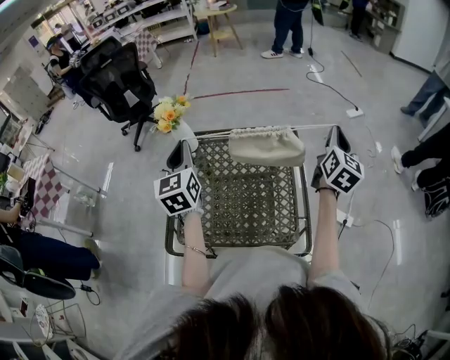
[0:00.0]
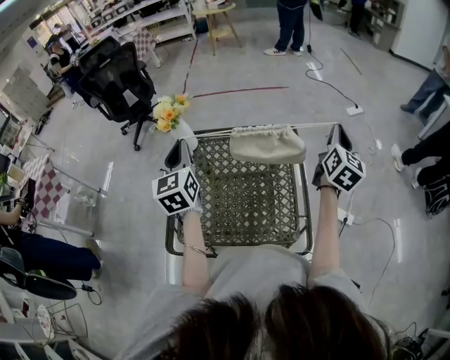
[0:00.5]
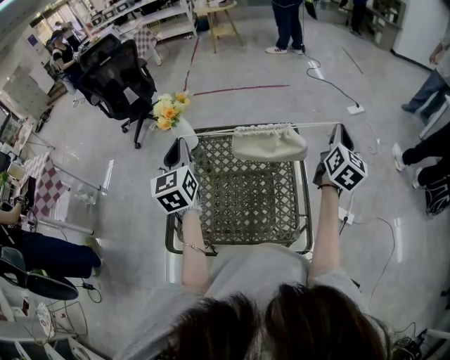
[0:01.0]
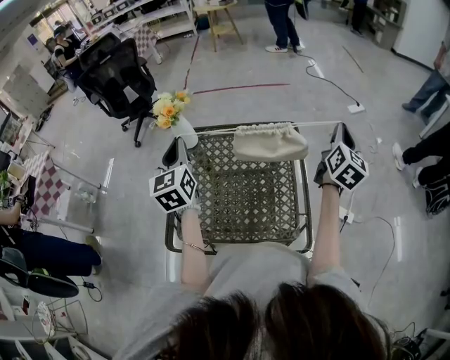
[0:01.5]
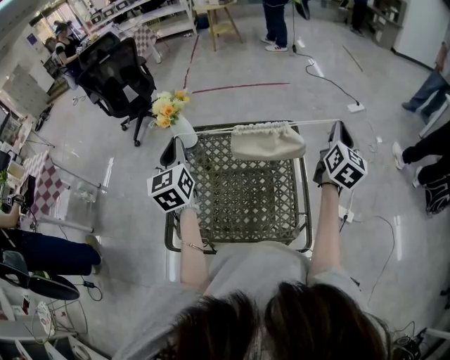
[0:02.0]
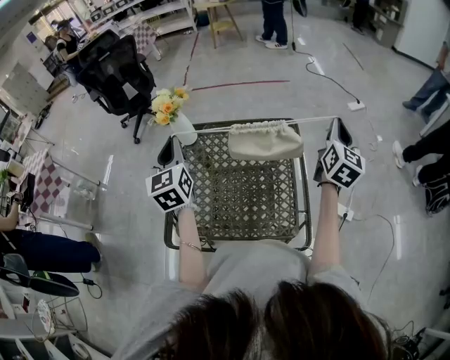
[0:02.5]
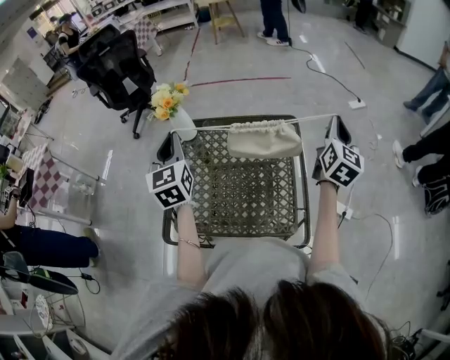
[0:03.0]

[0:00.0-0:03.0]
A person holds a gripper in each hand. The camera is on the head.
0:00.0 to 0:03.0: The grippers stay close to where they were, moving slightly.

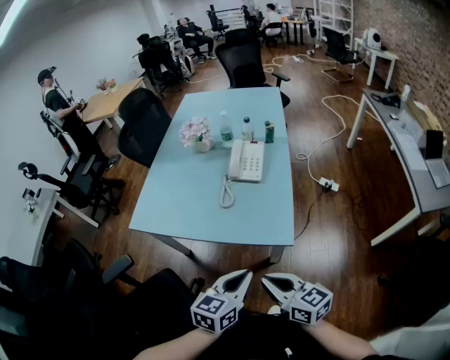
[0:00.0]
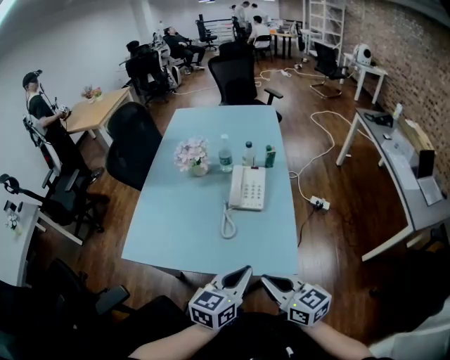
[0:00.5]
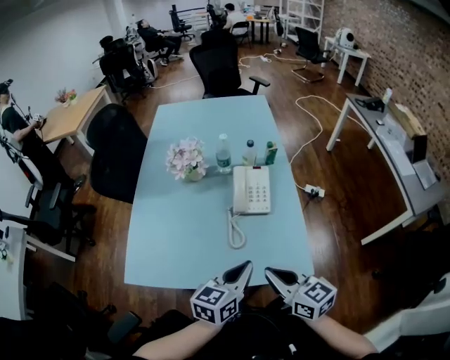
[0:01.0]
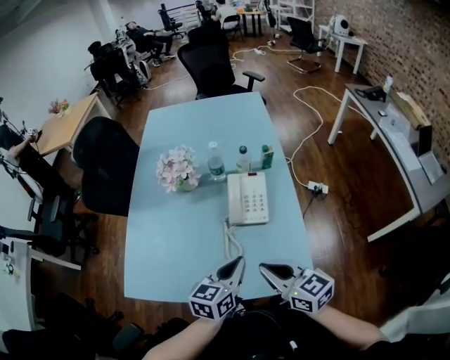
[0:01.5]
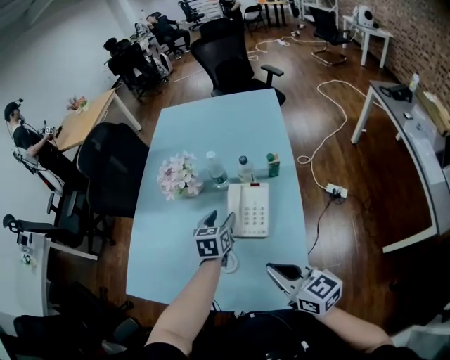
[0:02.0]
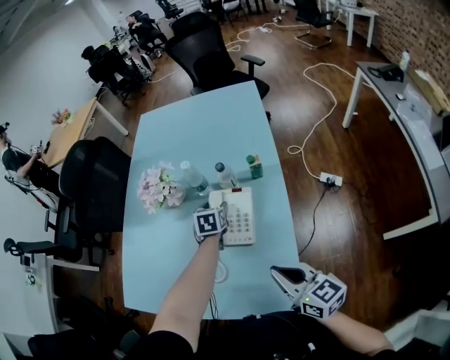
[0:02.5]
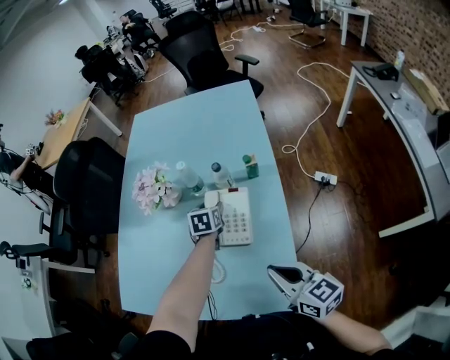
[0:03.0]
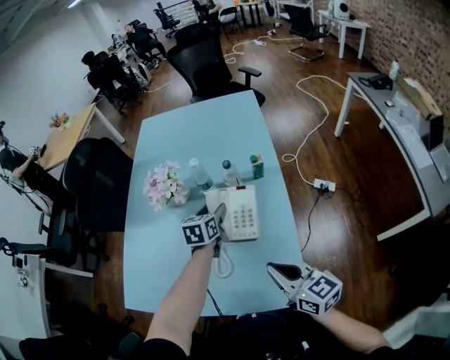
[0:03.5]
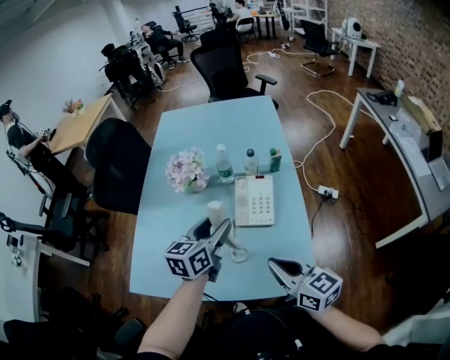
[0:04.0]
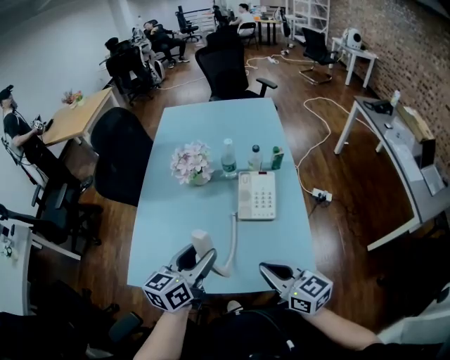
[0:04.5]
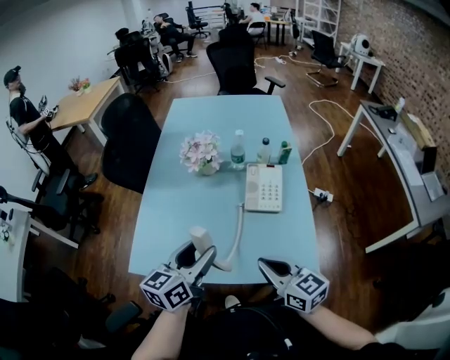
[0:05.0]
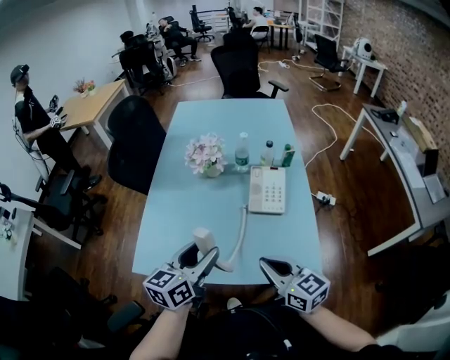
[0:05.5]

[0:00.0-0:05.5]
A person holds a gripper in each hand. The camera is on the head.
0:00.0 to 0:02.0: The right gripper shifts roughly 30 cm forward; the left gripper heads forward, covering roughly 50 cm, rotates about 20 degrees, and opens.
0:03.5 to 0:05.5: The right gripper travels to the left and backward by roughly 20 cm. The left gripper is displaced backward, to the left and upward by about 35 cm, and swivels some 30 degrees.

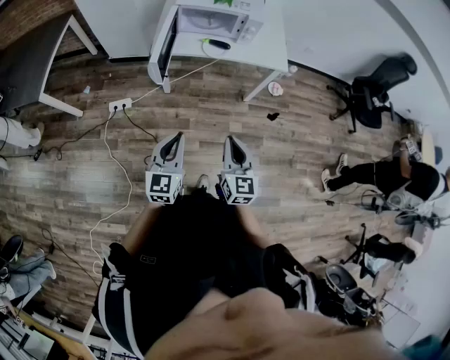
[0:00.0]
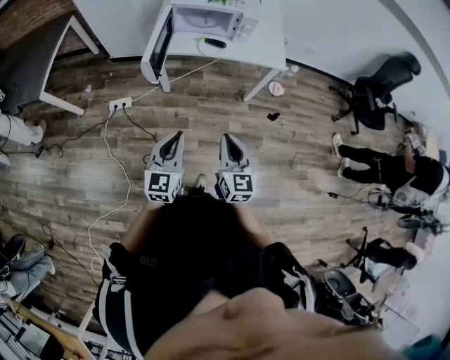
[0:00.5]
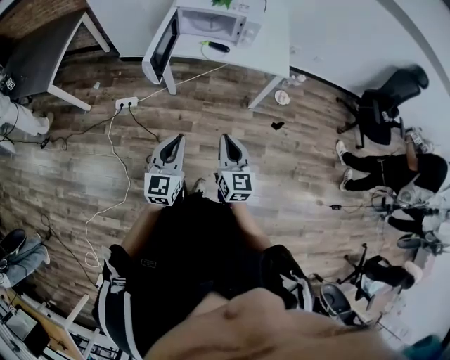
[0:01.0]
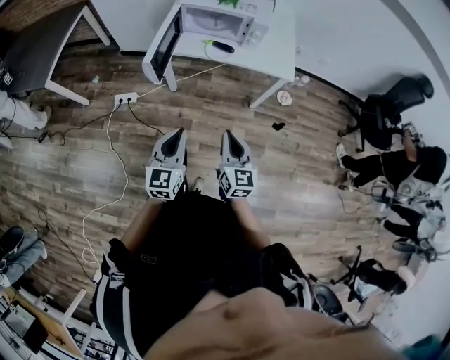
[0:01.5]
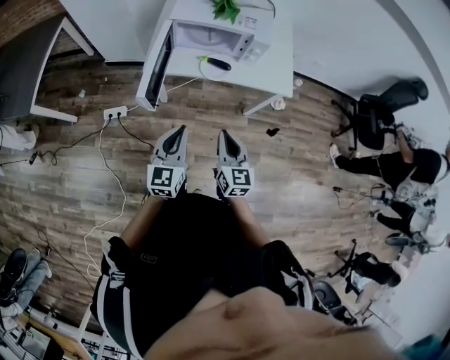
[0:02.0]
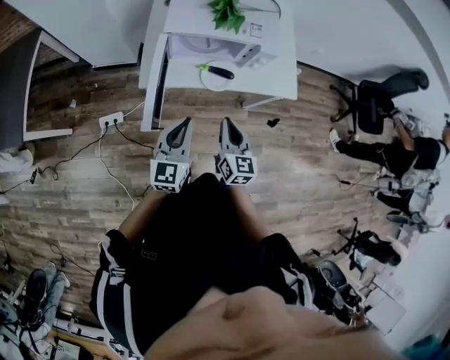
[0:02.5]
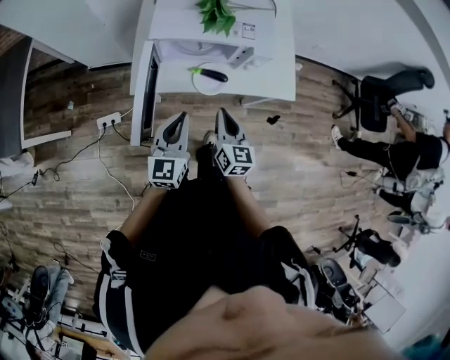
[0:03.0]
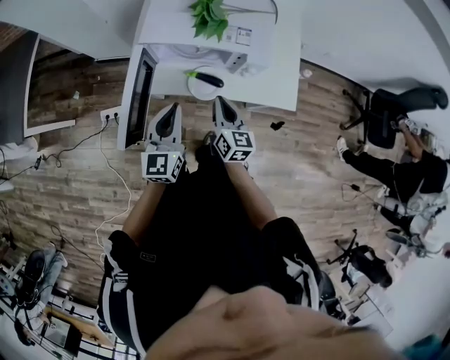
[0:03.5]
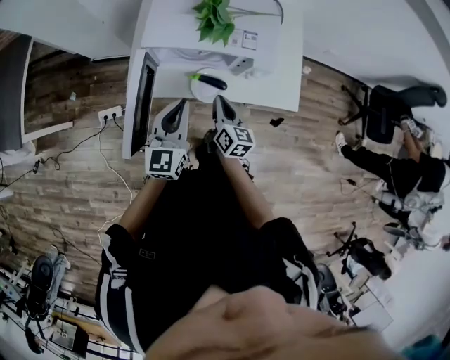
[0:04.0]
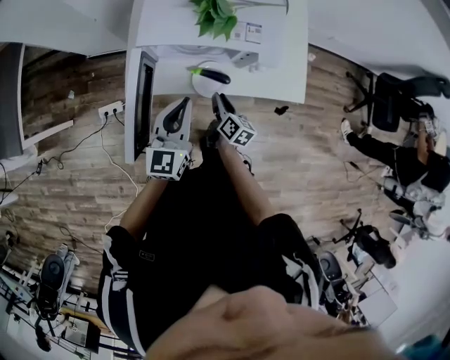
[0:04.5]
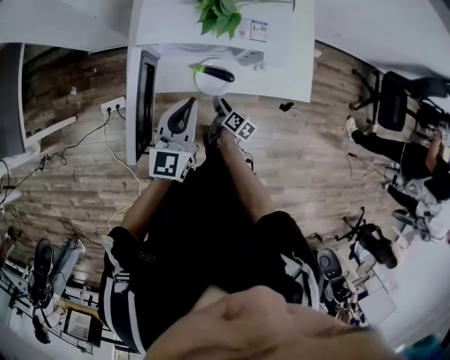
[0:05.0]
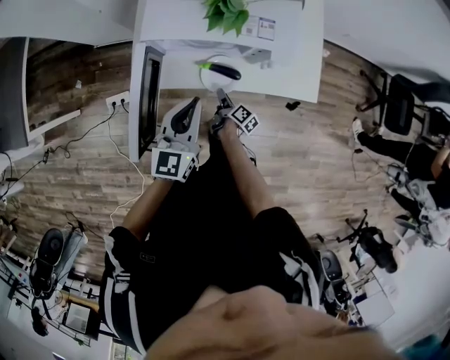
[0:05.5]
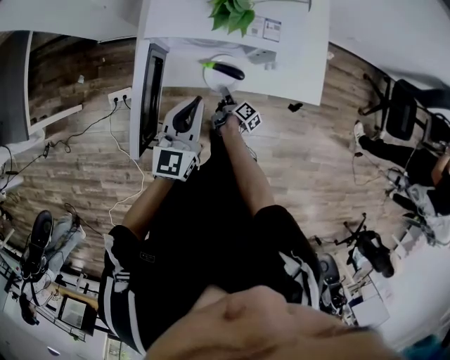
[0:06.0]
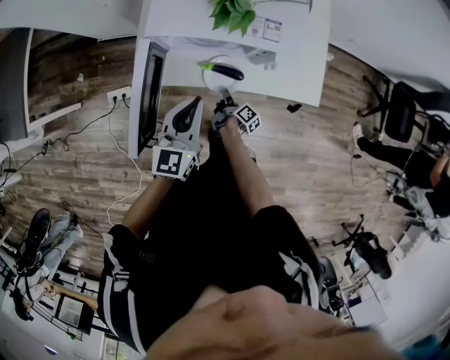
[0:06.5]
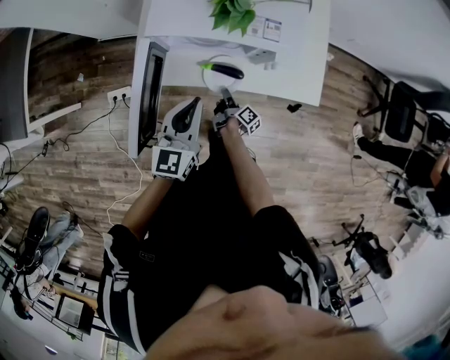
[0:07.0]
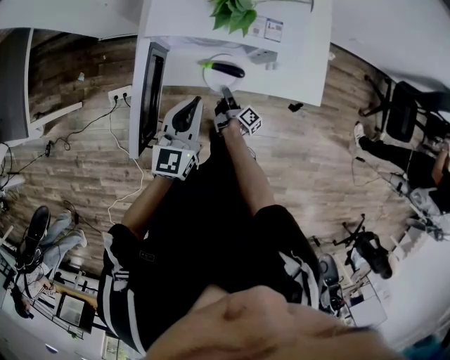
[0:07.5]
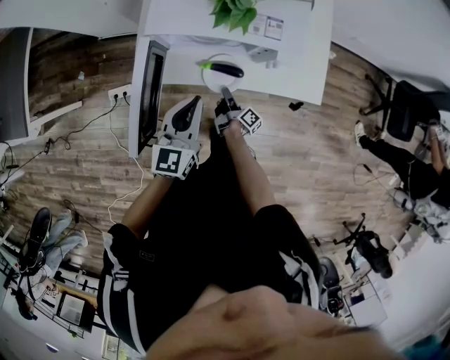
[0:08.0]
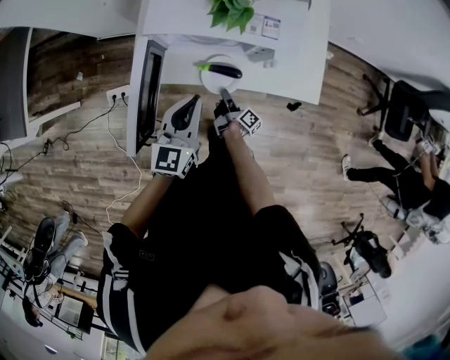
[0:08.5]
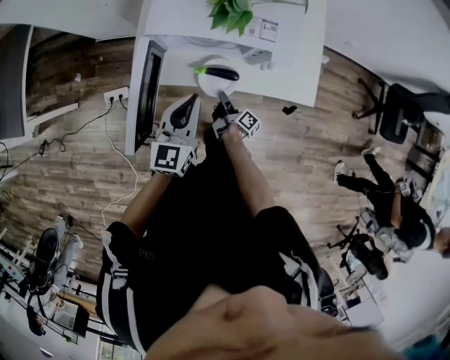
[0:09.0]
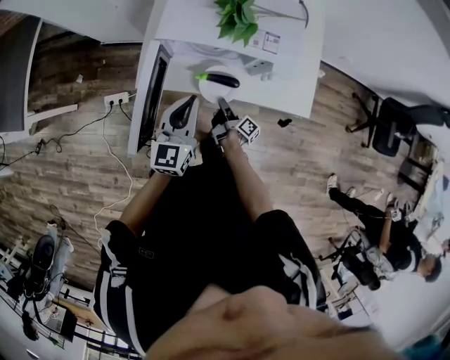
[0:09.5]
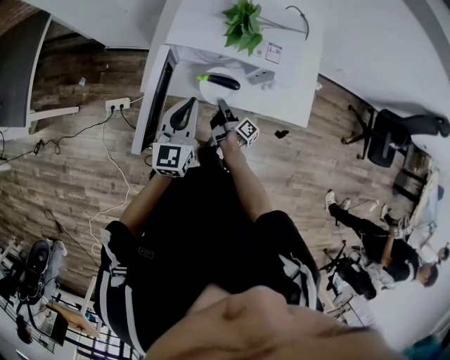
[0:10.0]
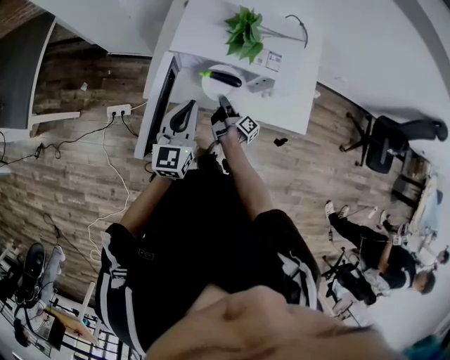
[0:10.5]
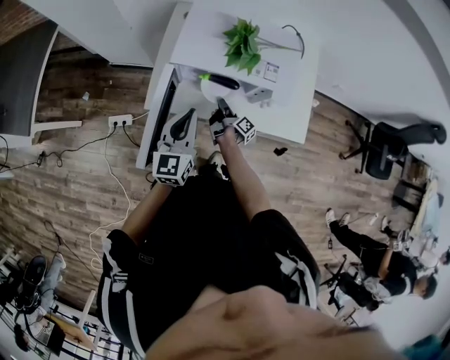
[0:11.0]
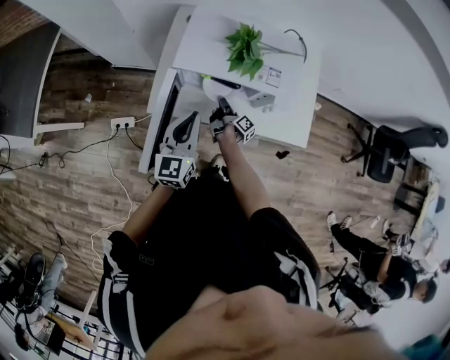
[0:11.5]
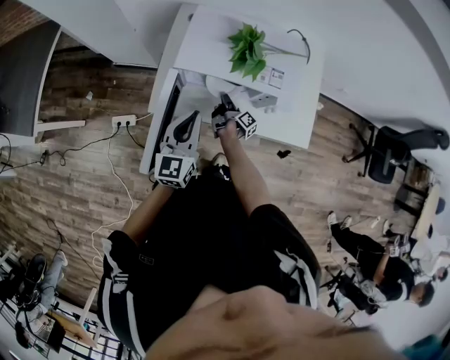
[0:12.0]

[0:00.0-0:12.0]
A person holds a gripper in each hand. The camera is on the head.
0:00.0 to 0:02.0: Both grippers travel together forward, some 20 cm.
0:02.0 to 0:04.0: The two grippers go roughly 30 cm forward. The right gripper turns by some 20 degrees.
0:04.0 to 0:06.0: The right gripper is displaced downward by about 25 cm, and twists roughly 50 degrees clockwise, seen from behind.
0:06.0 to 0:08.0: The grippers make only small movements.
0:08.0 to 0:10.0: The right gripper goes roughly 5 cm upward.
0:10.0 to 0:12.0: The right gripper moves forward, approximately 10 cm.

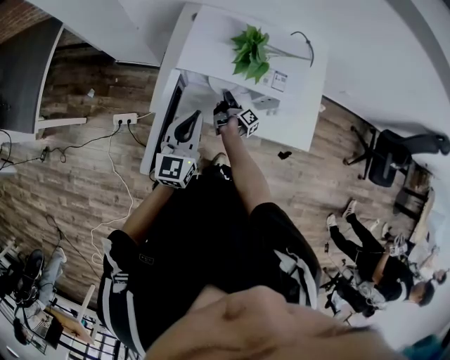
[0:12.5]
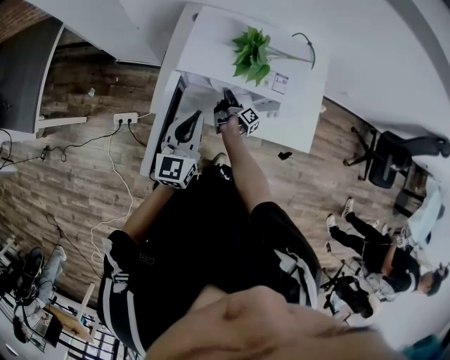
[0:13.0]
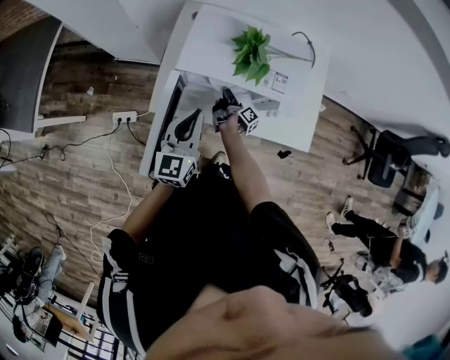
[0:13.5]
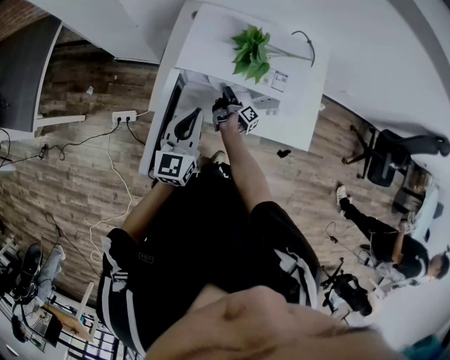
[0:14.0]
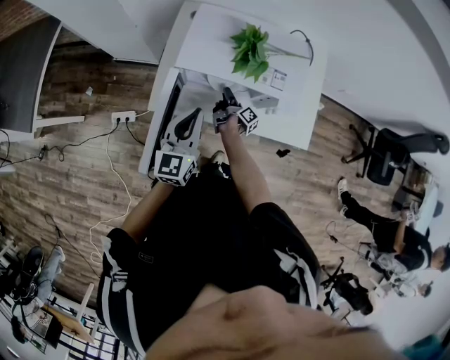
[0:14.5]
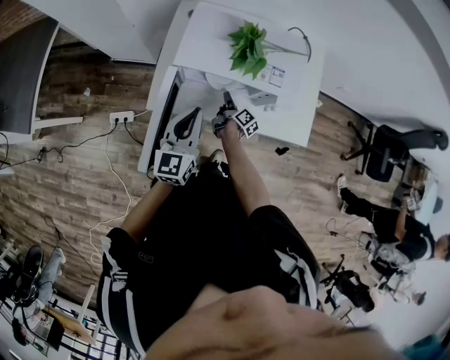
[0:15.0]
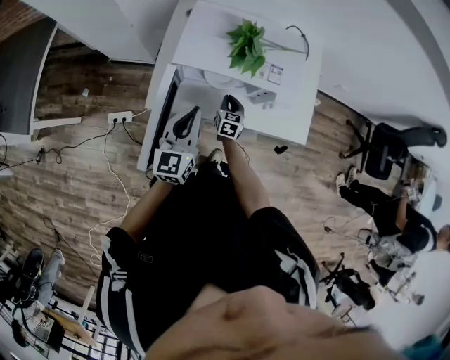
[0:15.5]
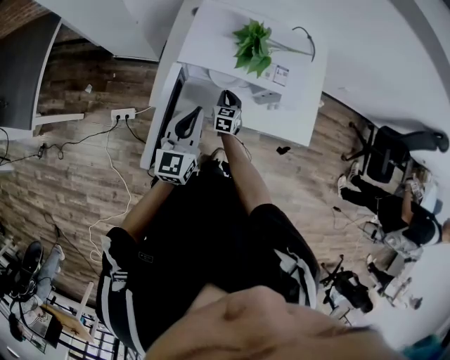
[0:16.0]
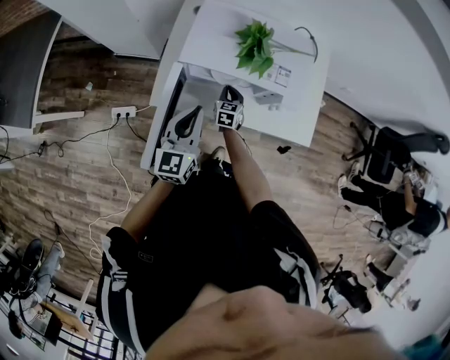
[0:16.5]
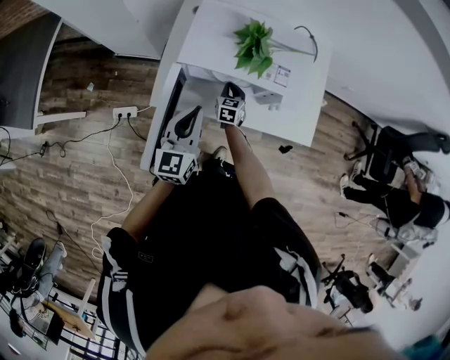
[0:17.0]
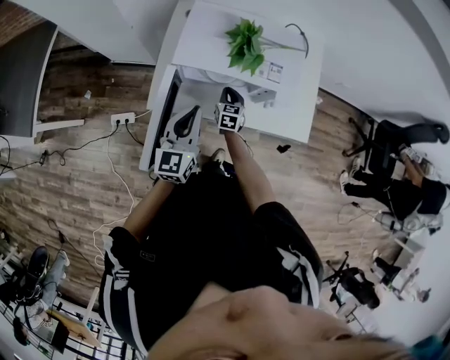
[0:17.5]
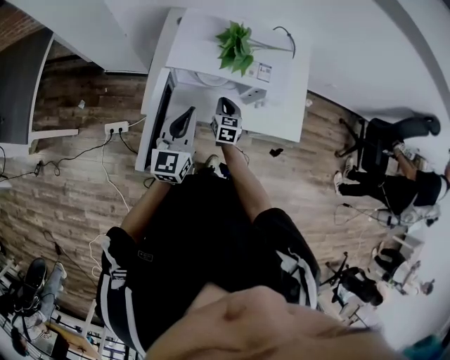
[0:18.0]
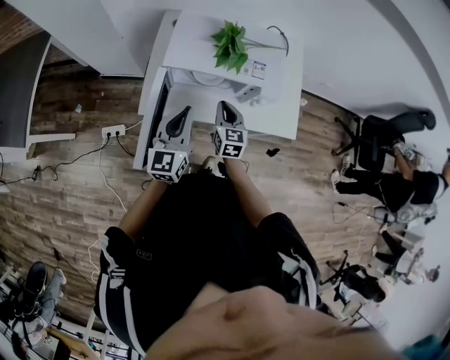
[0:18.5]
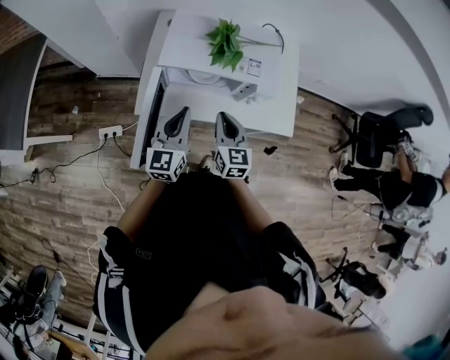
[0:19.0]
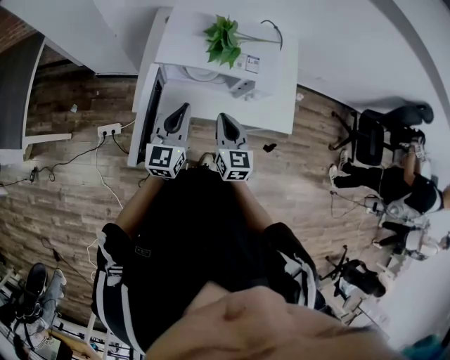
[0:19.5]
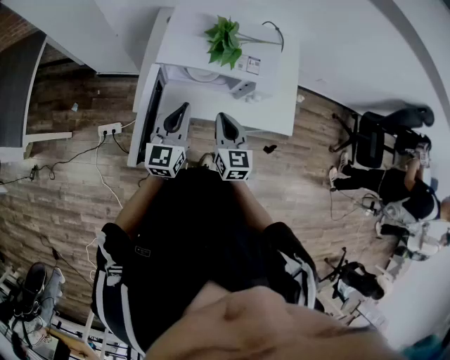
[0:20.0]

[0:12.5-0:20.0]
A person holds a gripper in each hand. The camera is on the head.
0:12.5 to 0:14.5: The right gripper opens.
0:14.5 to 0:16.5: The right gripper rolls counterclockwise, seen from behind, by roughly 90 degrees, and closes its fingers.
0:16.5 to 0:18.0: The right gripper moves upward, approximately 5 cm.
0:18.0 to 0:20.0: The right gripper moves upward and backward, some 20 cm.
